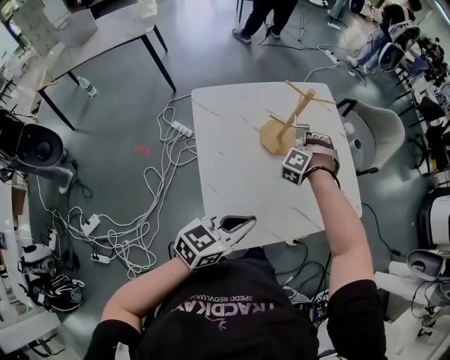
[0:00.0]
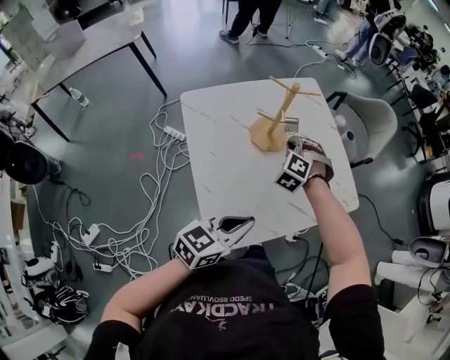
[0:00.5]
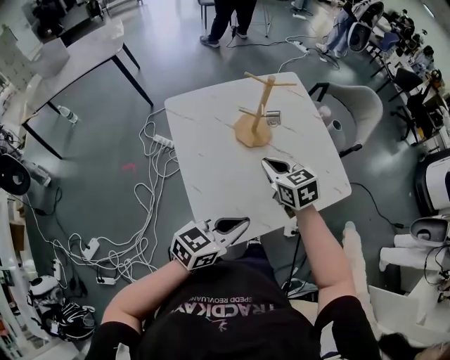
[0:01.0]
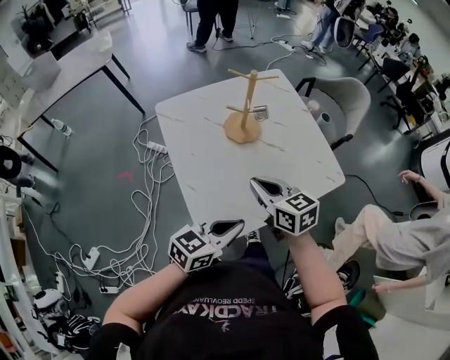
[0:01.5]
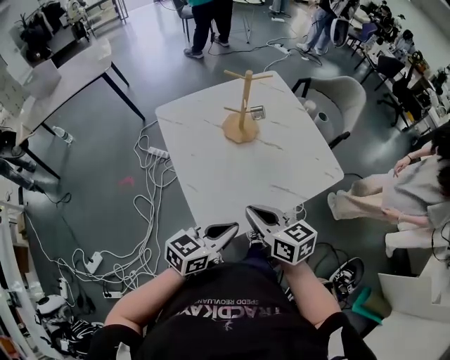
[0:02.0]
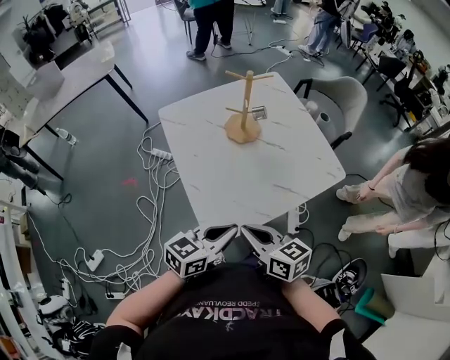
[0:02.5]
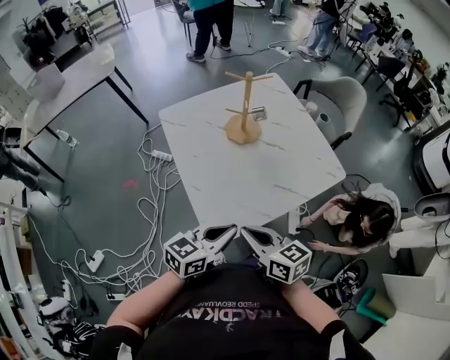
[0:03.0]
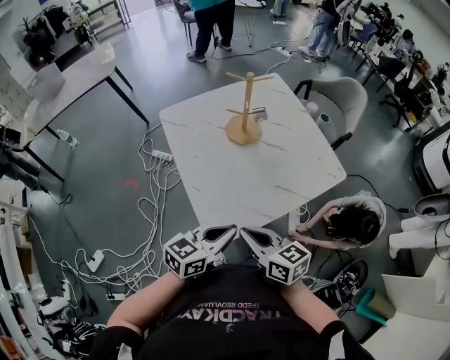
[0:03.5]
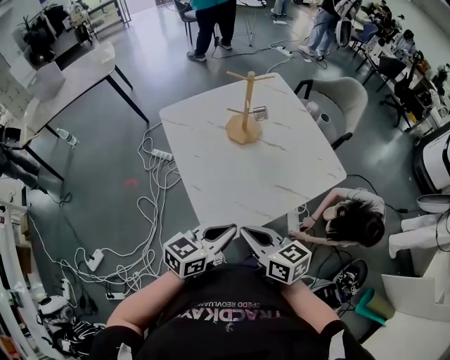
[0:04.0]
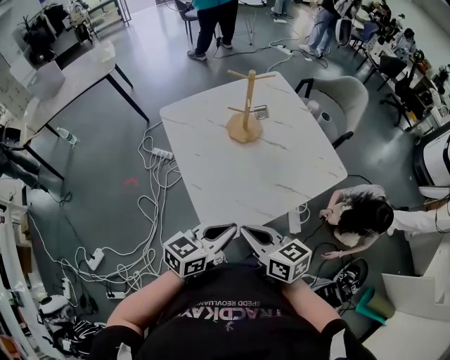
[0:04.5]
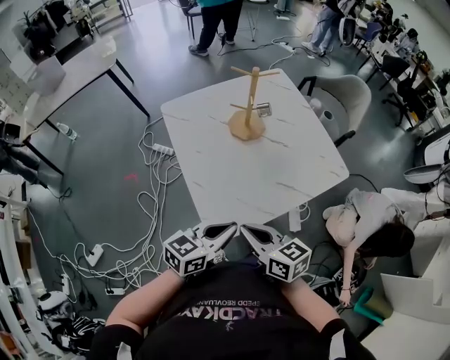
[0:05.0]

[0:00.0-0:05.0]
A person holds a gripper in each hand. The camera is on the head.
0:00.0 to 0:02.5: The right gripper shifts by roughly 40 cm, and rotates approximately 120 degrees; the left gripper shifts by some 10 cm.
0:02.5 to 0:05.0: Neither gripper changes place.

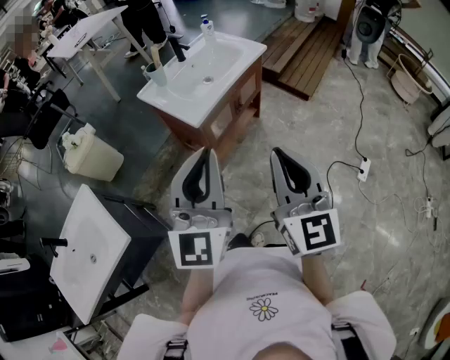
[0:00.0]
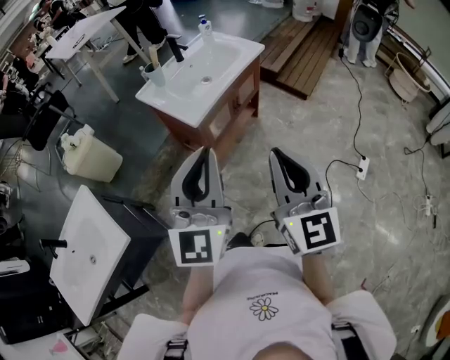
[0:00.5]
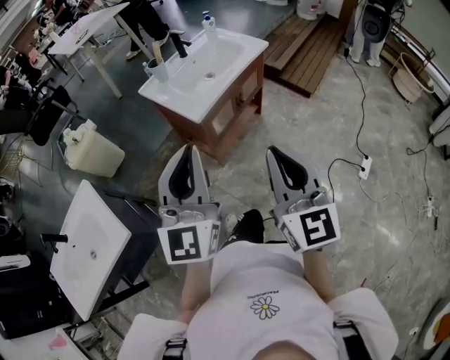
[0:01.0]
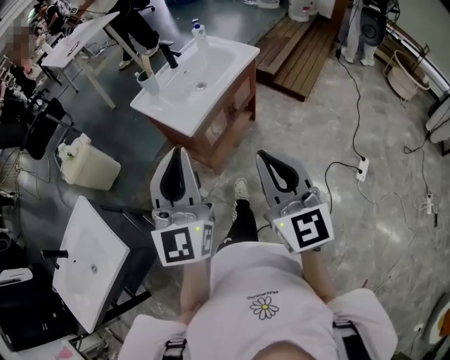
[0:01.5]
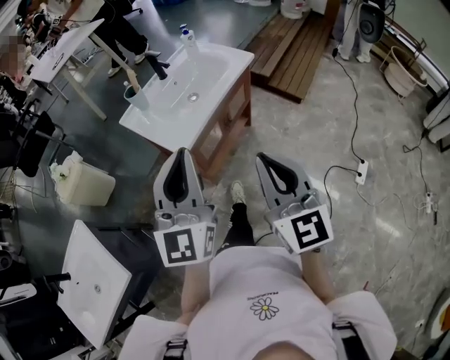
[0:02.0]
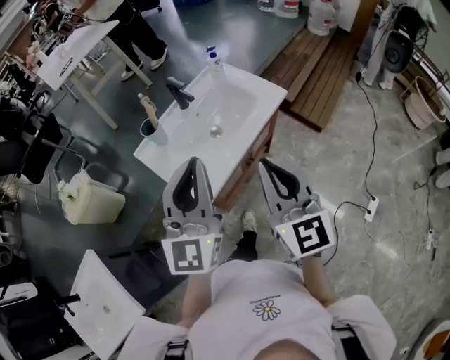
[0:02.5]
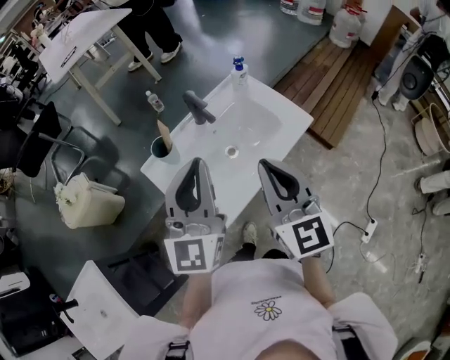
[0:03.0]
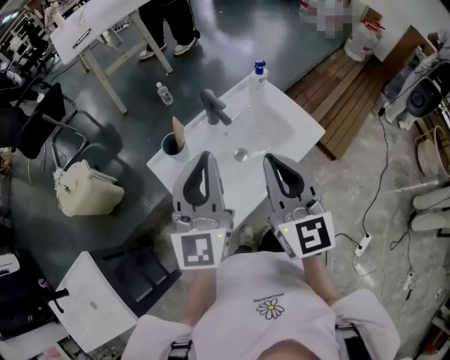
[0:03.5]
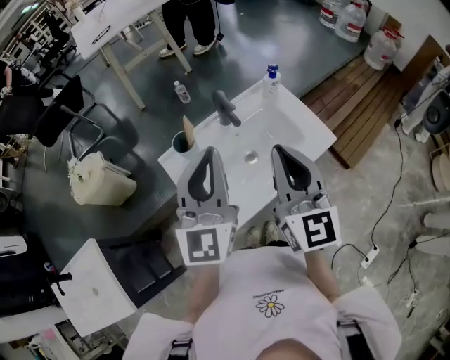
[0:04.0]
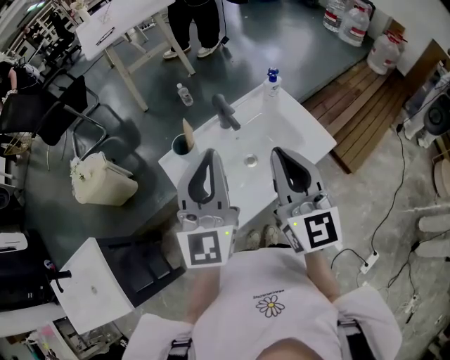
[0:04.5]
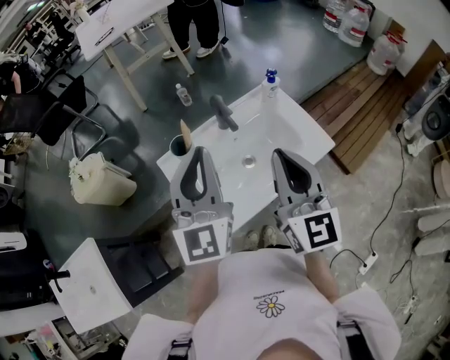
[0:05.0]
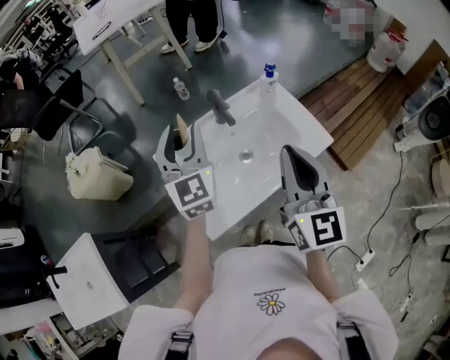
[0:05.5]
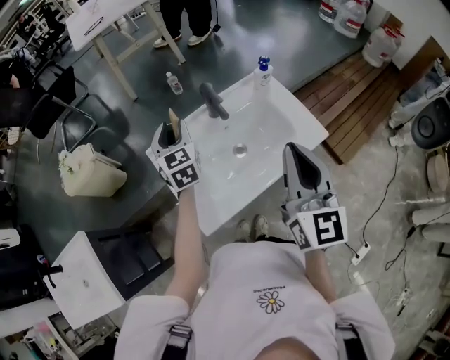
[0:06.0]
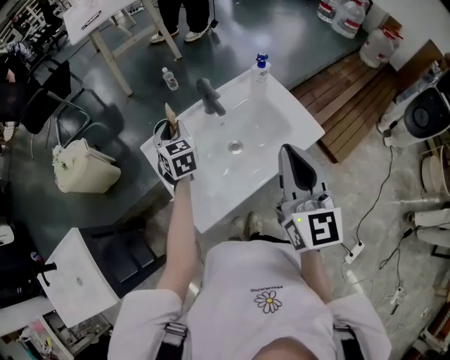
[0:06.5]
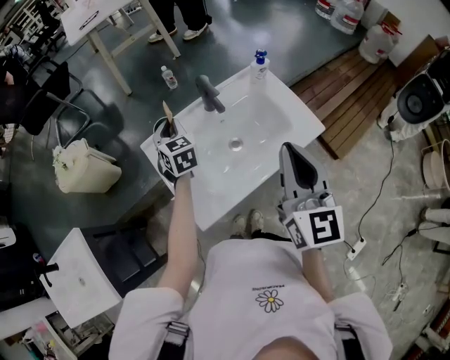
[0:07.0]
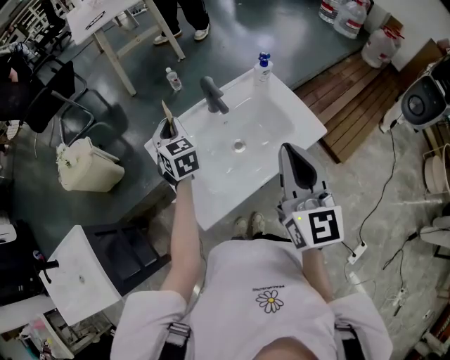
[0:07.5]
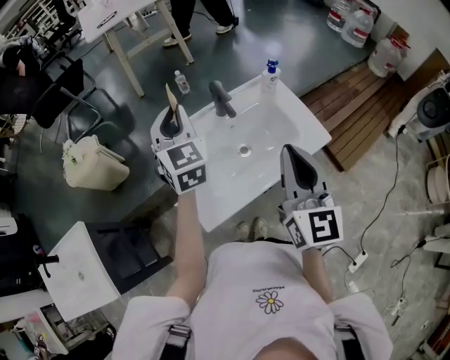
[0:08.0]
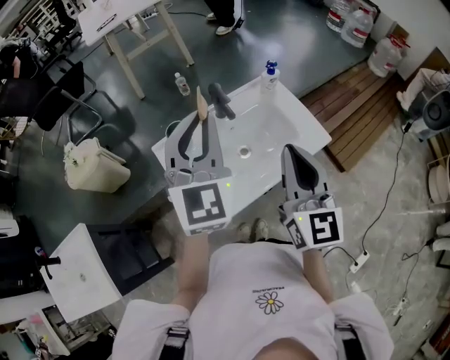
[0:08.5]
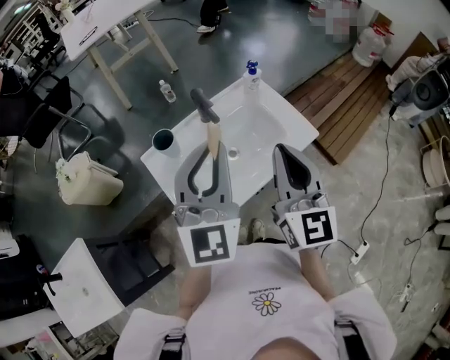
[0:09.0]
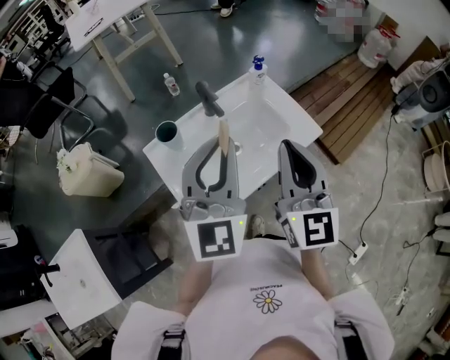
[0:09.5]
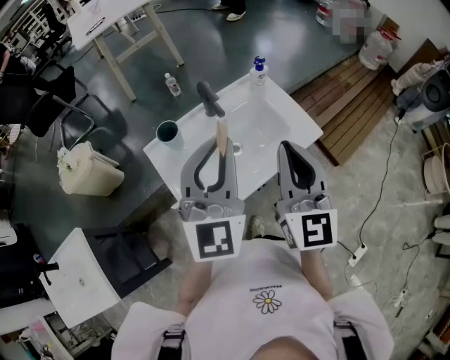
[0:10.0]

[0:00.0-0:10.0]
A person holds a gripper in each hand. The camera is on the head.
0:00.0 to 0:02.0: The two grippers go approximately 15 cm forward.
0:02.0 to 0:04.0: Both grippers travel together forward, approximately 40 cm.
0:04.0 to 0:06.0: The right gripper heads to the right, covering some 5 cm. The left gripper moves downward, forward and to the left, approximately 25 cm, swivels about 30 degrees, and opens.
0:06.0 to 0:08.0: The left gripper moves upward, approximately 10 cm, and closes its fingers.
0:08.0 to 0:10.0: The left gripper travels to the right, backward and upward by roughly 20 cm, and swivels approximately 30 degrees.

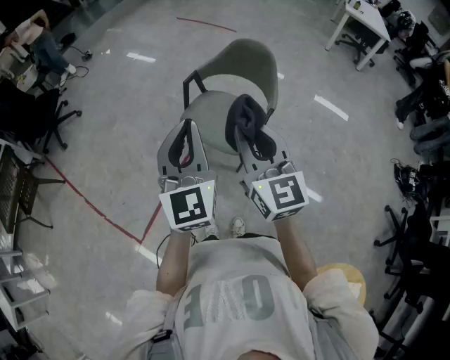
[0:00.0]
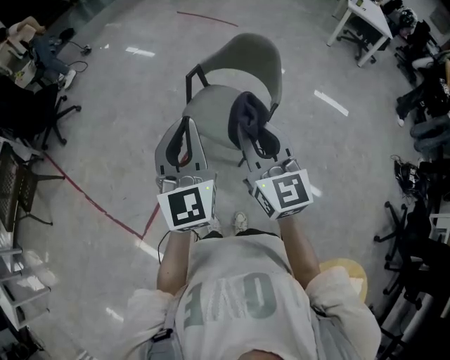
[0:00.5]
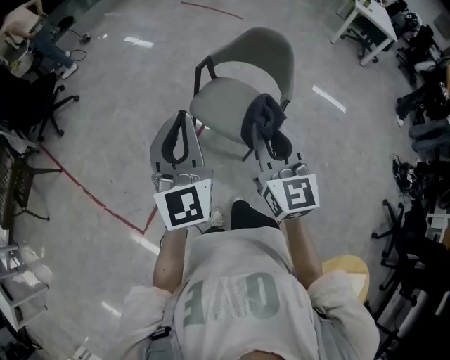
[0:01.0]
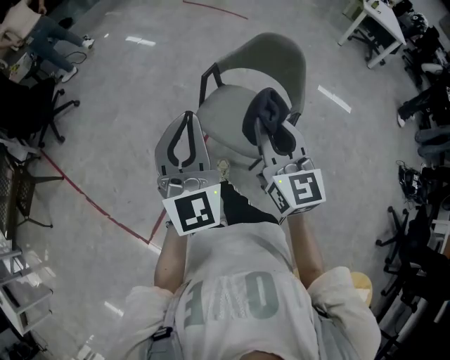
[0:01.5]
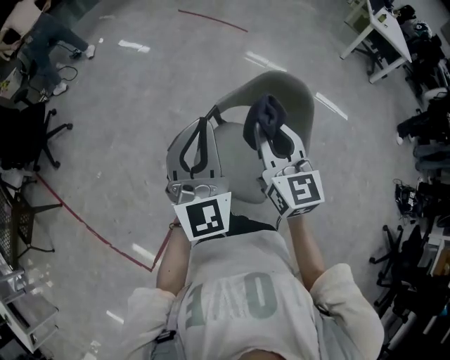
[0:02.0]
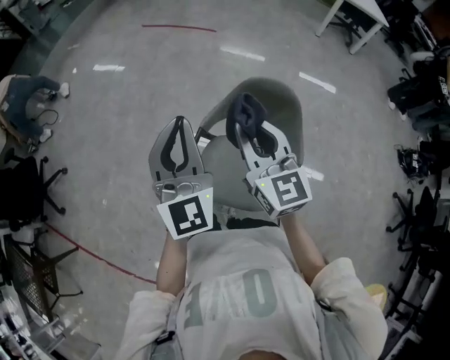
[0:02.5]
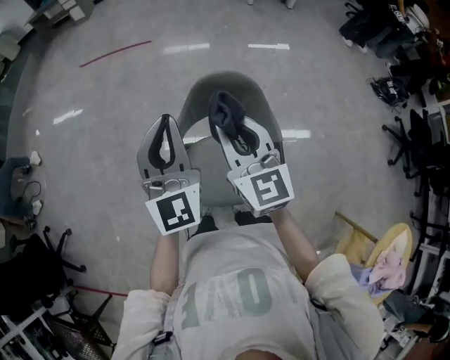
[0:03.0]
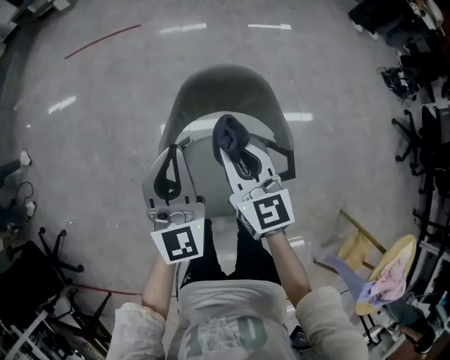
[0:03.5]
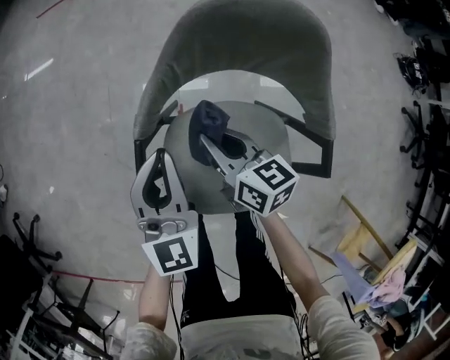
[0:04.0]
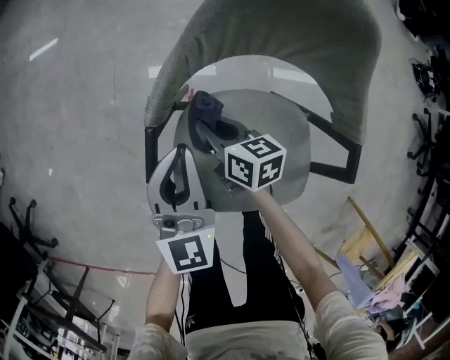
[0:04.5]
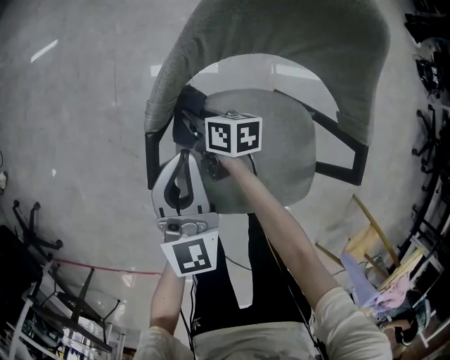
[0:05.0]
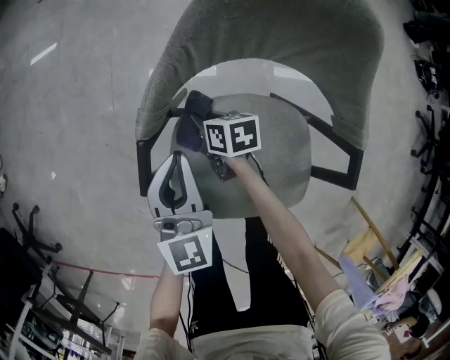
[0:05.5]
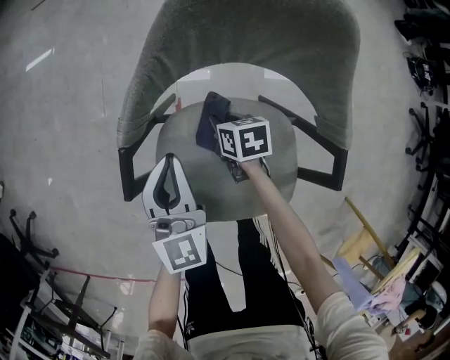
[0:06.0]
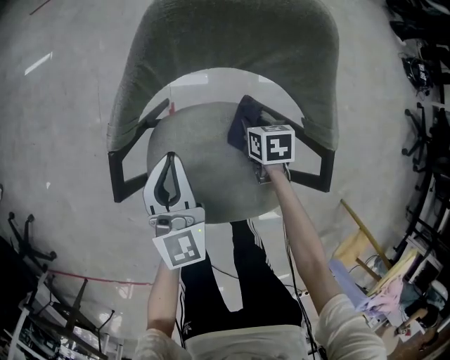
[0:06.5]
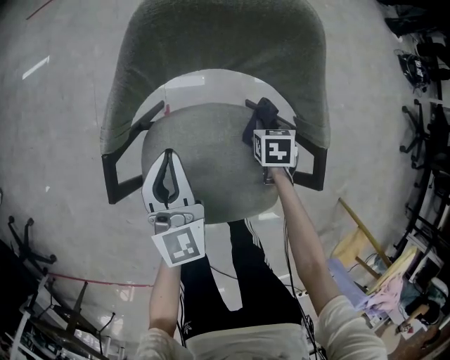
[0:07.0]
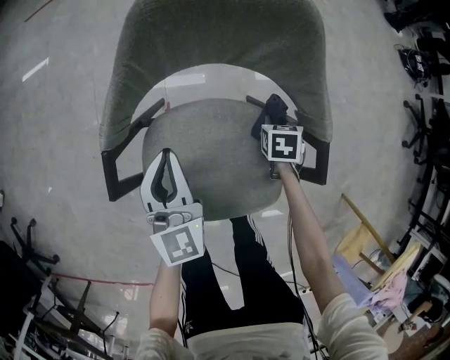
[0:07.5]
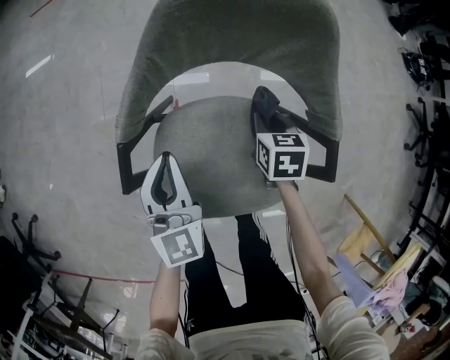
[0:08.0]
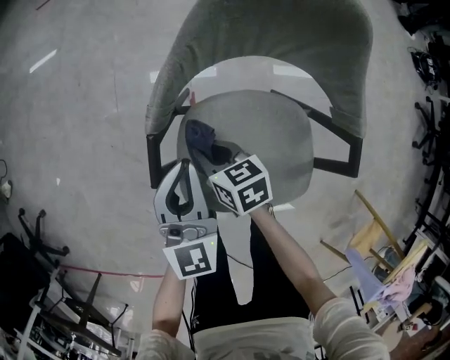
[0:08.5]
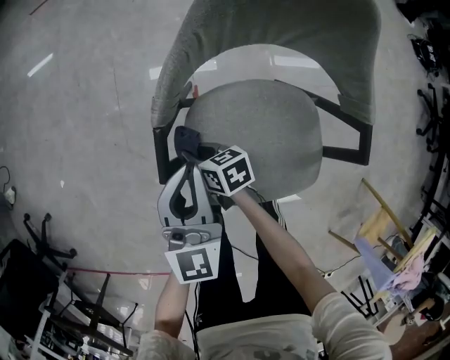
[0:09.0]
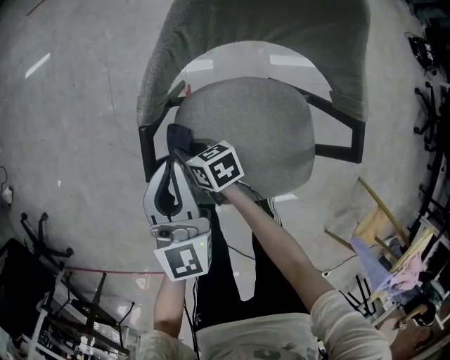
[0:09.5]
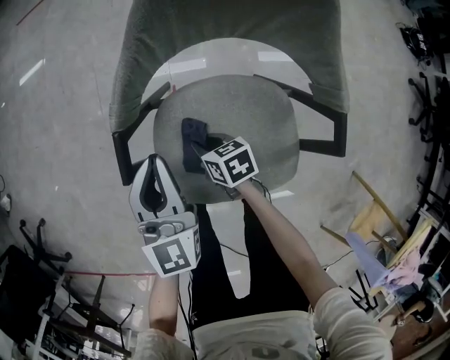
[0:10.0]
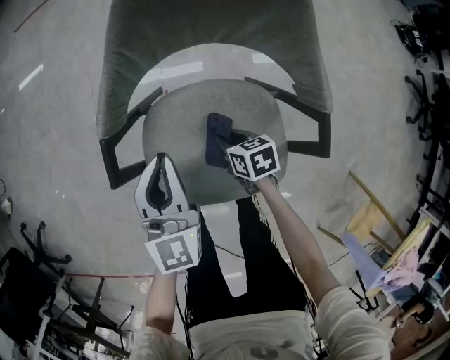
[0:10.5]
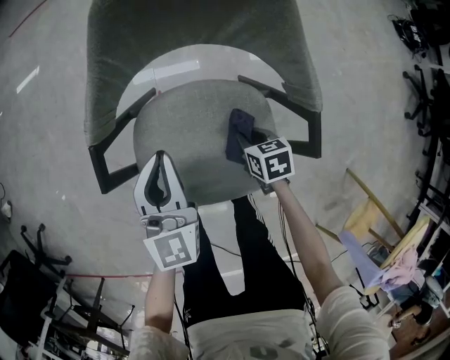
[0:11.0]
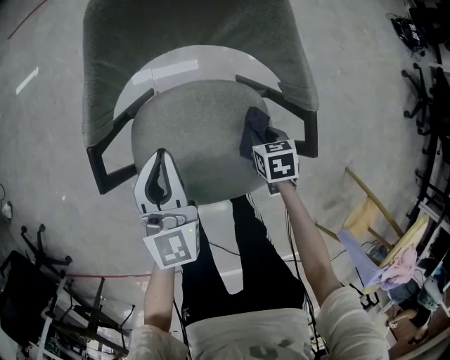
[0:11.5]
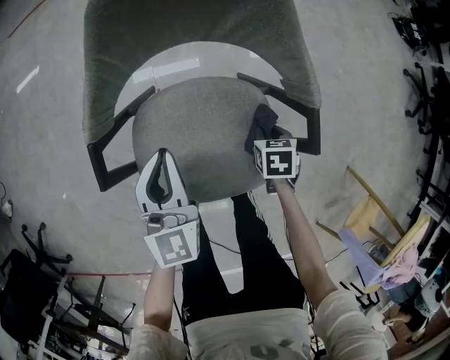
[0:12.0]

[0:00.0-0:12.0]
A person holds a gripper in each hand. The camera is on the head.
0:00.0 to 0:02.0: The two grippers go some 35 cm forward.
0:02.0 to 0:04.0: Both grippers travel together downward, about 40 cm. The left gripper rotates approximately 40 degrees. Meanwhile the right gripper rolls clockwise, seen from behind, by some 40 degrees.
0:04.0 to 0:06.0: The left gripper is displaced downward by some 10 cm; the right gripper moves downward, some 20 cm, and angles its fingers downward, by some 30 degrees.
0:06.0 to 0:08.0: The right gripper swivels some 20 degrees.
0:08.0 to 0:10.0: The right gripper ends up some 25 cm from where it was, and changes its angle by roughly 30 degrees.
0:10.0 to 0:12.0: The right gripper ends up some 25 cm from where it was, and swivels about 40 degrees. Meanwhile the left gripper shifts by about 10 cm.
